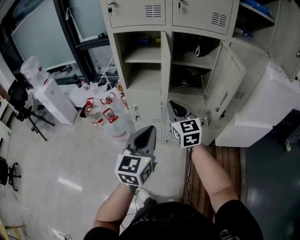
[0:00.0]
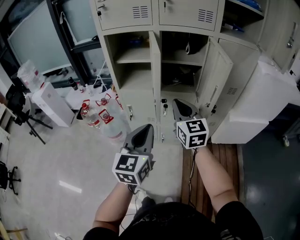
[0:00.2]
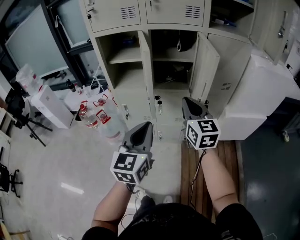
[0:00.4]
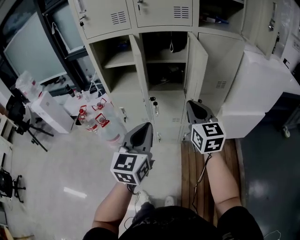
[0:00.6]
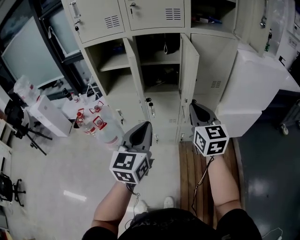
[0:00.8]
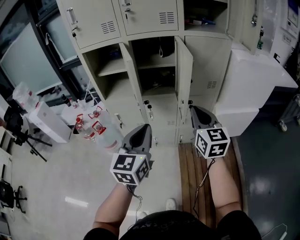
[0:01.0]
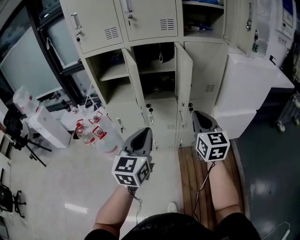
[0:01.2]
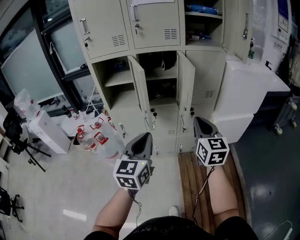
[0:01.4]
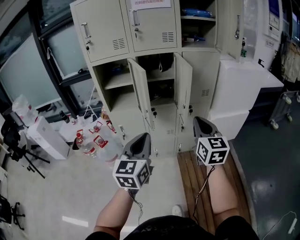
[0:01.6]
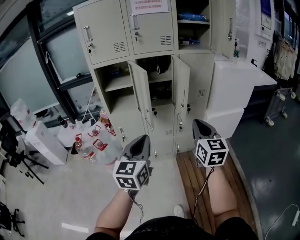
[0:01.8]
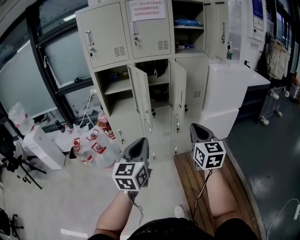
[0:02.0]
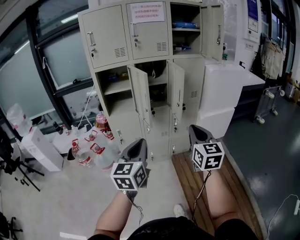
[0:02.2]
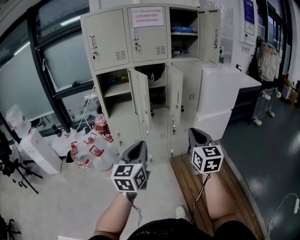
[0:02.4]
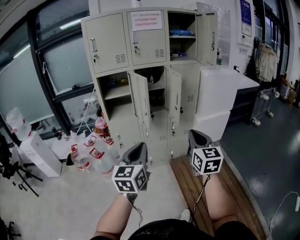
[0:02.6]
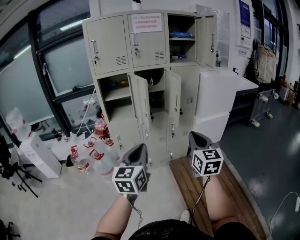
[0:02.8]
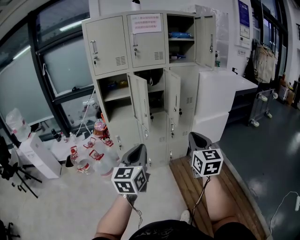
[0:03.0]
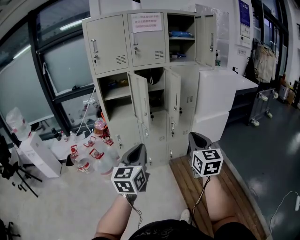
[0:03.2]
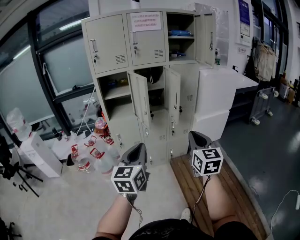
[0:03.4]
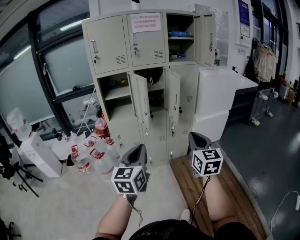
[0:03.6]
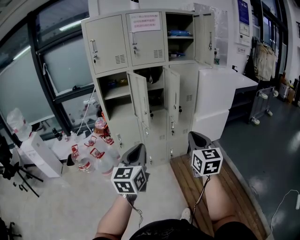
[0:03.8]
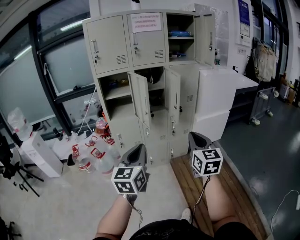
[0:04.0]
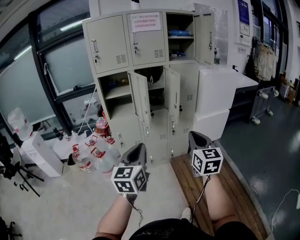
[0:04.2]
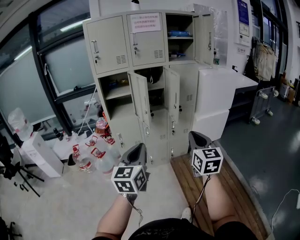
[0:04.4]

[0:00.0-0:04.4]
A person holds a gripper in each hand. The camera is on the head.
0.0 to 1.4 s: The right gripper is displaced to the right and backward by roughly 30 cm, and swivels approximately 20 degrees. Meanwhile the left gripper travels to the right, backward and upward by some 15 cm.
1.4 to 3.0 s: The right gripper heads backward, covering some 25 cm, while the left gripper travels backward and to the left by some 20 cm.
3.0 to 4.4 s: There are only small adjustments of the grippers.

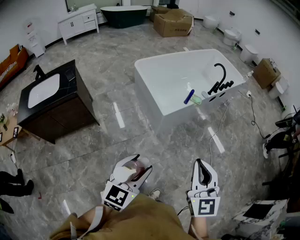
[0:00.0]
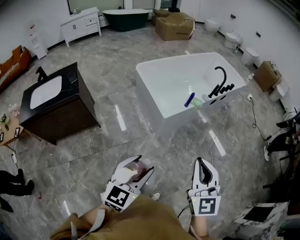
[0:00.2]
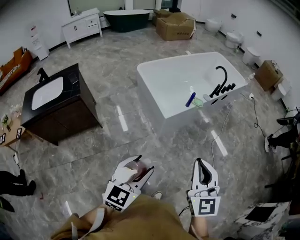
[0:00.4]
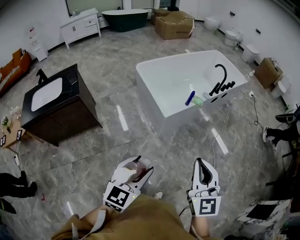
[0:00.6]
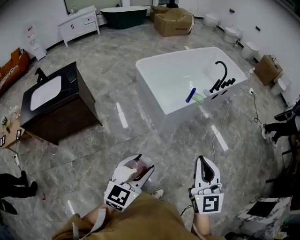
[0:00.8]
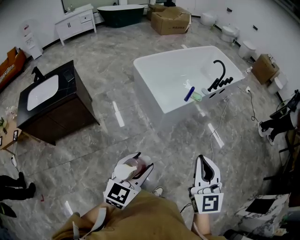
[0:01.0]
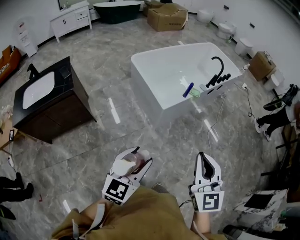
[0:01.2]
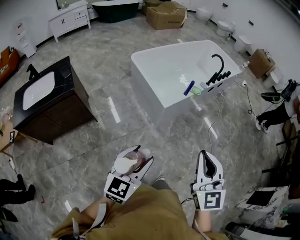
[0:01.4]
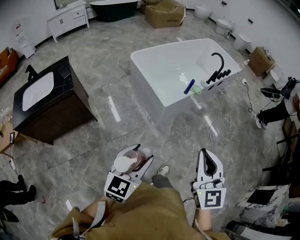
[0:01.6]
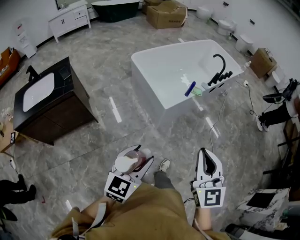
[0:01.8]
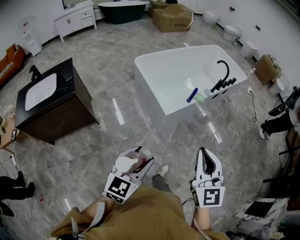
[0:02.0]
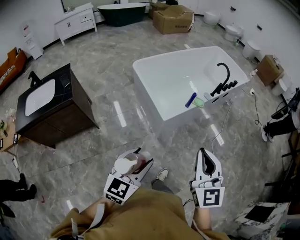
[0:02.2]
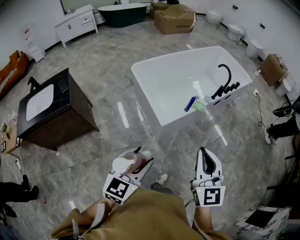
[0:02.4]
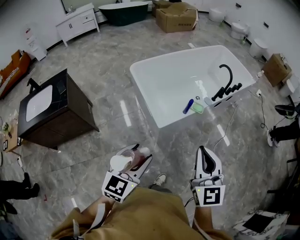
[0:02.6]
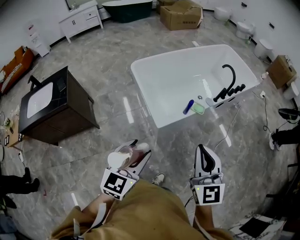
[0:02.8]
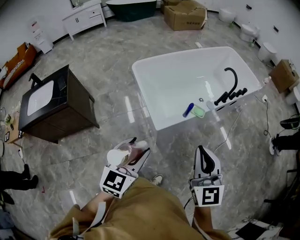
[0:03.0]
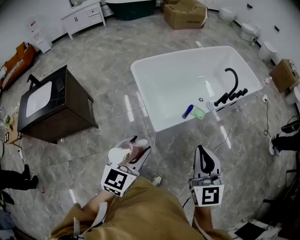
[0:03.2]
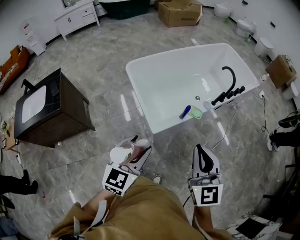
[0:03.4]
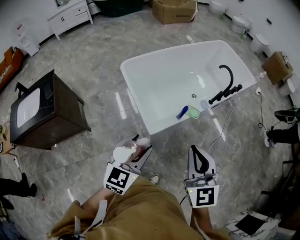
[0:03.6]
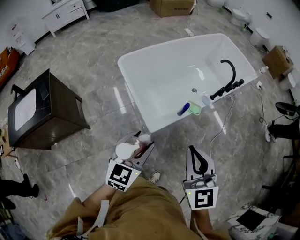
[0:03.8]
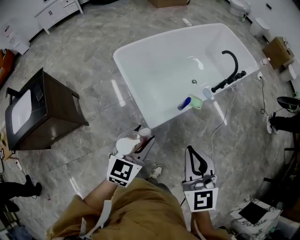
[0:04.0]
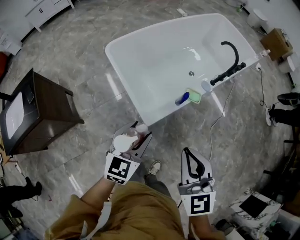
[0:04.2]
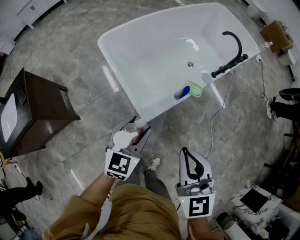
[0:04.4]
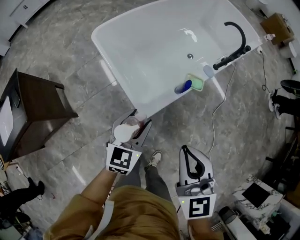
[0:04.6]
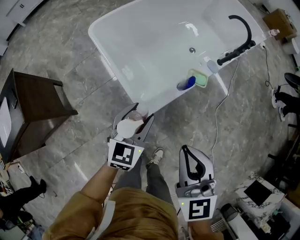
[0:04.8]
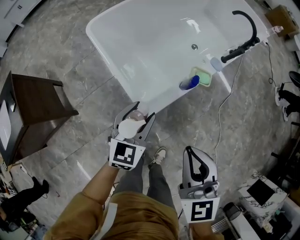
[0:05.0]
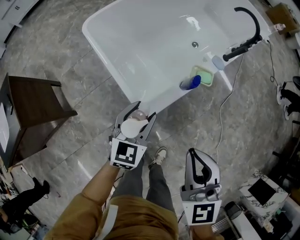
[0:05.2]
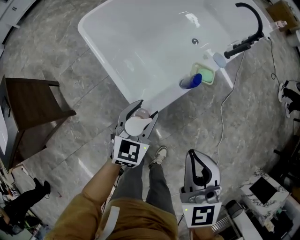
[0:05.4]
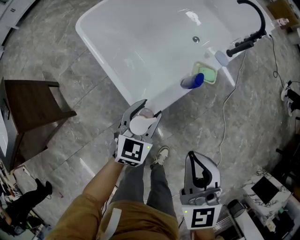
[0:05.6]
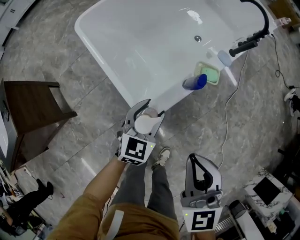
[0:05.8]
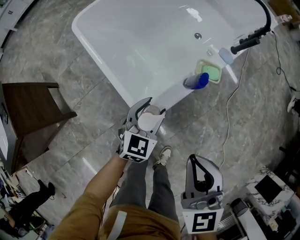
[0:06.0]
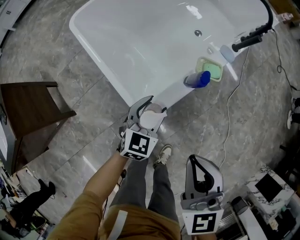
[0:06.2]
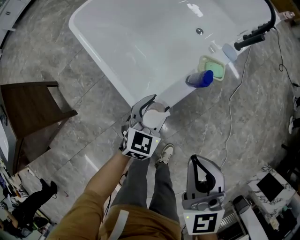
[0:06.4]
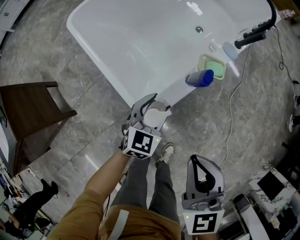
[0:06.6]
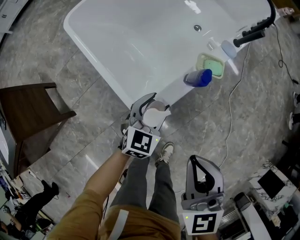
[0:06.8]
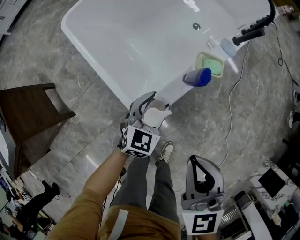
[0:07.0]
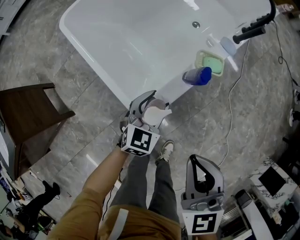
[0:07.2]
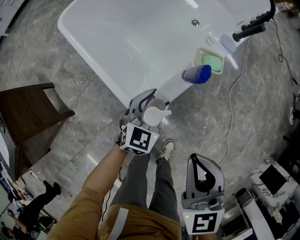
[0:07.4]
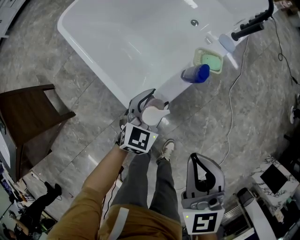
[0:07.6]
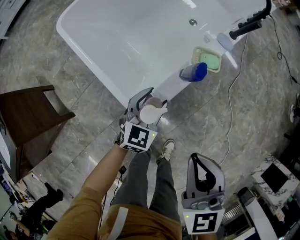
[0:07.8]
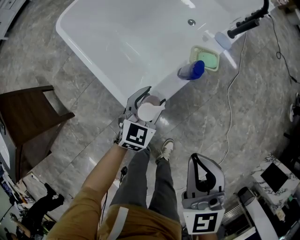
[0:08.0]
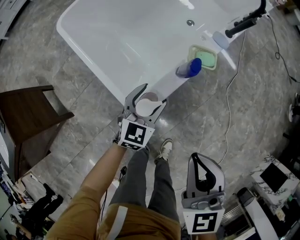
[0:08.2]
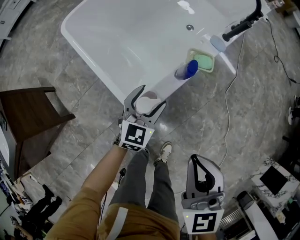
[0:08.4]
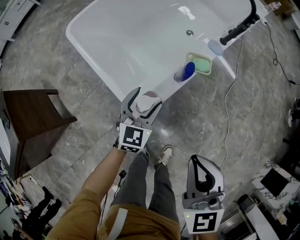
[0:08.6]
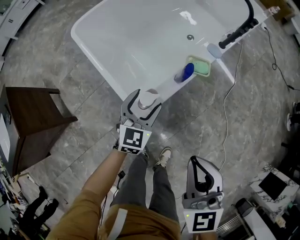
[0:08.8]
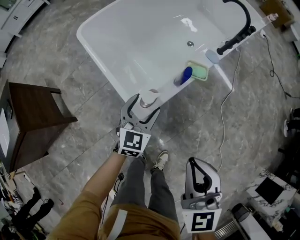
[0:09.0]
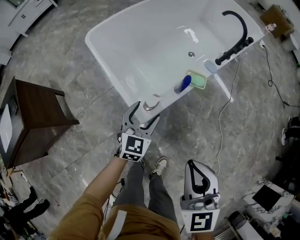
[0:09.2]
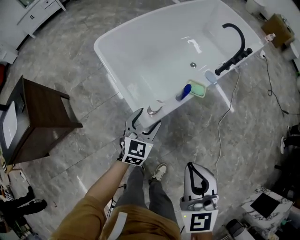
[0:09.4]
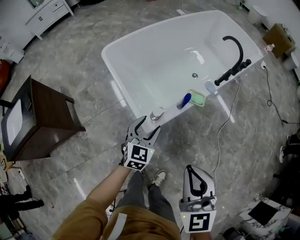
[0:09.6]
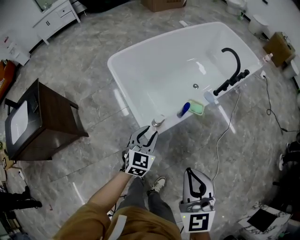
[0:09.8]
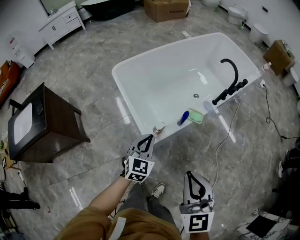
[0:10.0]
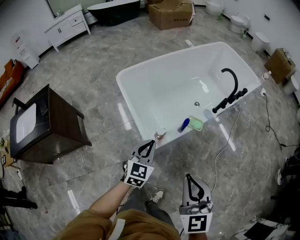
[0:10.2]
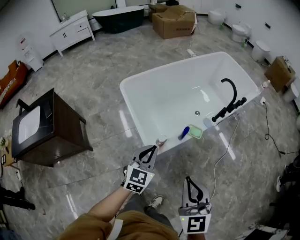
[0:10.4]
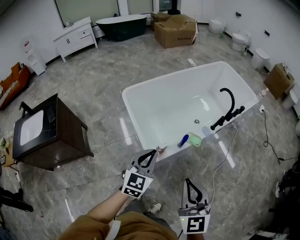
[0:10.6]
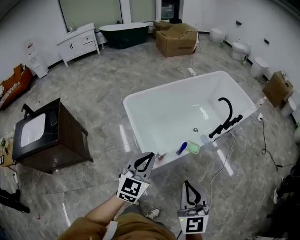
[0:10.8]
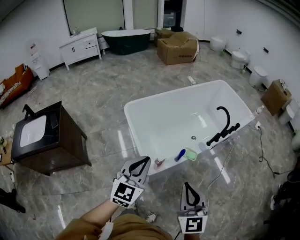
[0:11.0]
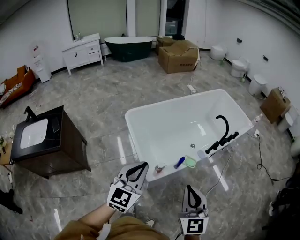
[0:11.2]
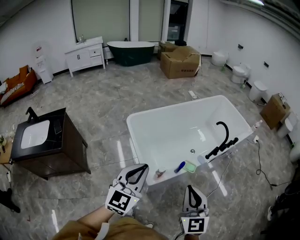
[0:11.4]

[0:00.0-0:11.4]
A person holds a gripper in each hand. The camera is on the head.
0.0 to 1.4 s: The grippers stay close to where they were, moving slightly.
1.4 to 2.8 s: The left gripper moves forward and to the right, about 25 cm, while the right gripper shifts roughly 25 cm forward.
2.8 to 4.2 s: The right gripper moves forward, downward and to the left, roughly 15 cm. Meanwhile the left gripper shifts about 25 cm forward and downward.
4.2 to 5.6 s: The two grippers go some 20 cm downward and forward.
5.6 to 7.2 s: The left gripper travels downward by about 10 cm. Meanwhile the right gripper is displaced downward by approximately 5 cm.
7.2 to 8.6 s: The right gripper moves some 5 cm.
8.6 to 10.0 s: Both grippers move upward and backward, approximately 20 cm. The left gripper closes.
10.0 to 11.4 s: The right gripper moves upward, approximately 10 cm. The left gripper travels upward by some 30 cm, and turns by approximately 20 degrees.

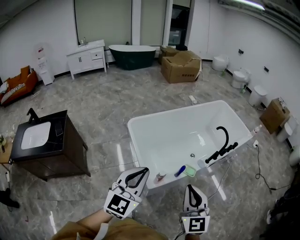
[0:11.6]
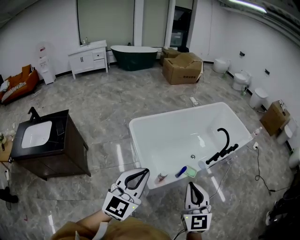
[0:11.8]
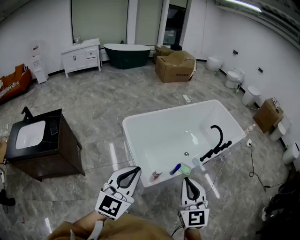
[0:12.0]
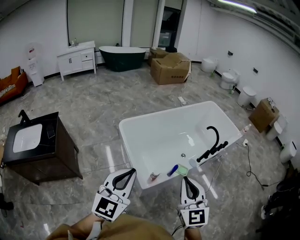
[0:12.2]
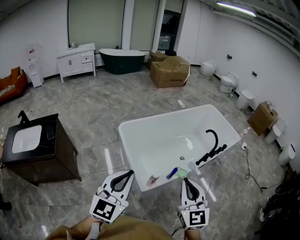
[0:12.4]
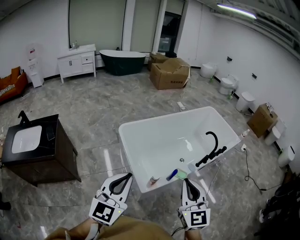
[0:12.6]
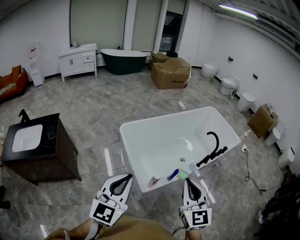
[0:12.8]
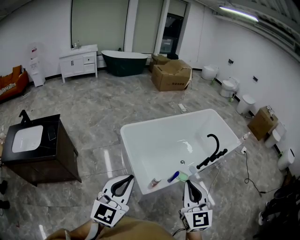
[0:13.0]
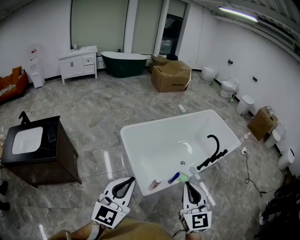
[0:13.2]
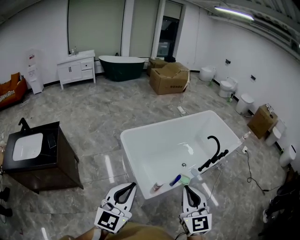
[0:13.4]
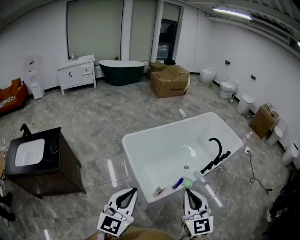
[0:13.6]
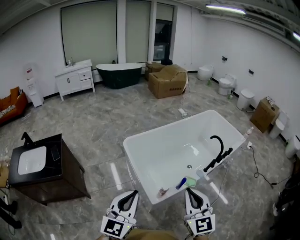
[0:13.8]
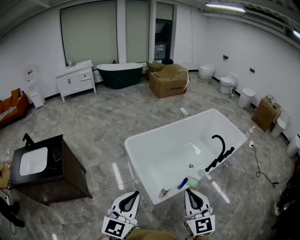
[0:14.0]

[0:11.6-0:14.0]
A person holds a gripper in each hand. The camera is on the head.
11.6 to 12.8 s: The left gripper heads to the left, covering some 5 cm. Meanwhile the right gripper moves about 5 cm.
12.8 to 14.0 s: There are only small adjustments of the grippers.

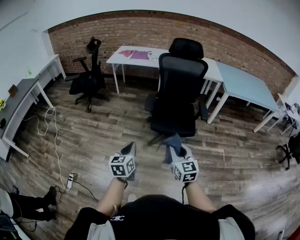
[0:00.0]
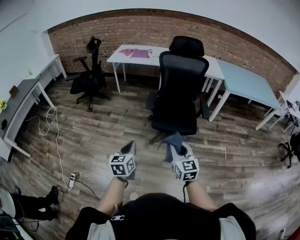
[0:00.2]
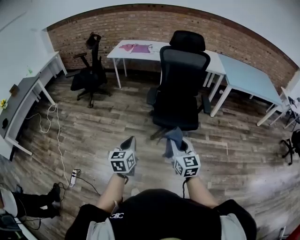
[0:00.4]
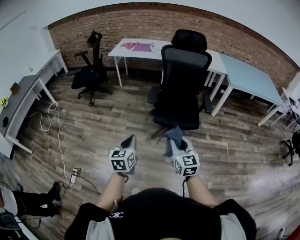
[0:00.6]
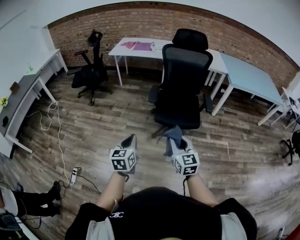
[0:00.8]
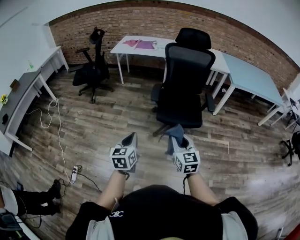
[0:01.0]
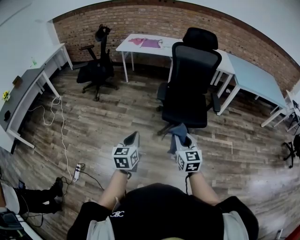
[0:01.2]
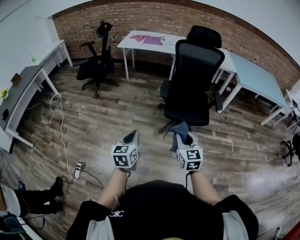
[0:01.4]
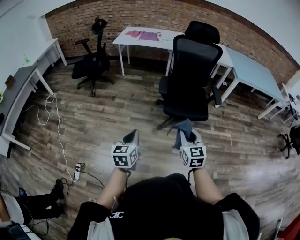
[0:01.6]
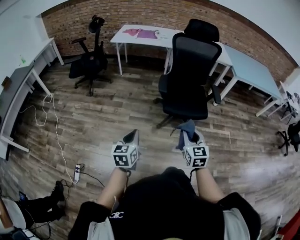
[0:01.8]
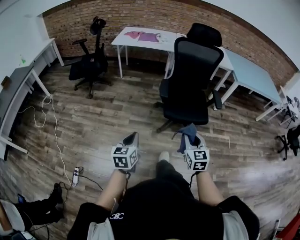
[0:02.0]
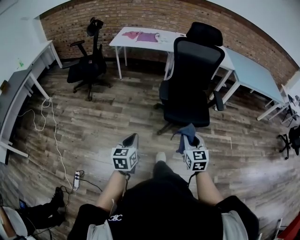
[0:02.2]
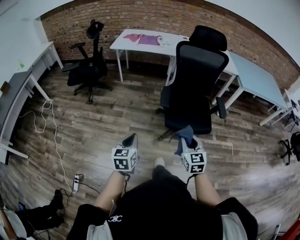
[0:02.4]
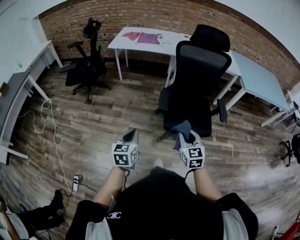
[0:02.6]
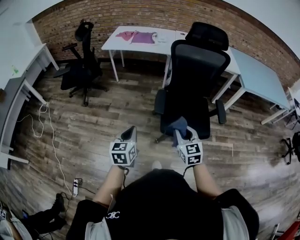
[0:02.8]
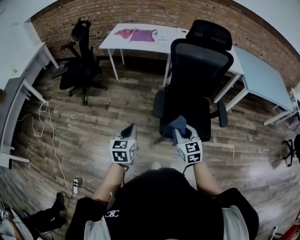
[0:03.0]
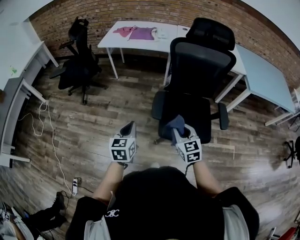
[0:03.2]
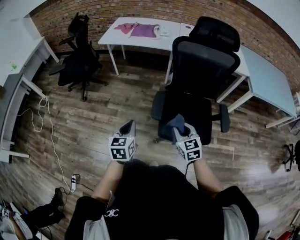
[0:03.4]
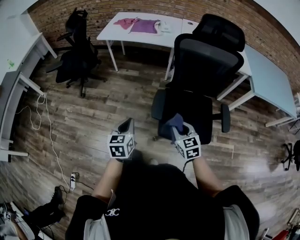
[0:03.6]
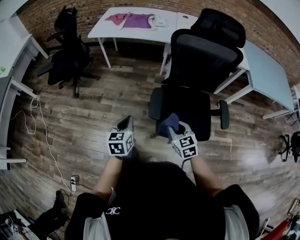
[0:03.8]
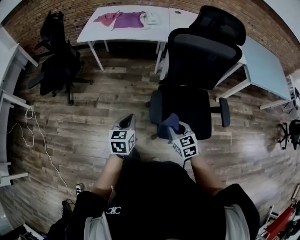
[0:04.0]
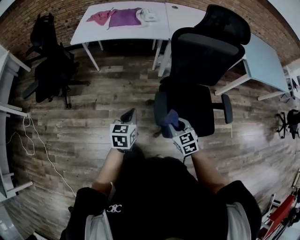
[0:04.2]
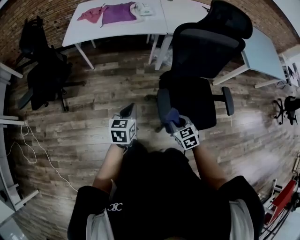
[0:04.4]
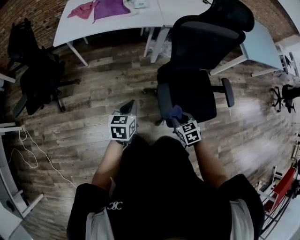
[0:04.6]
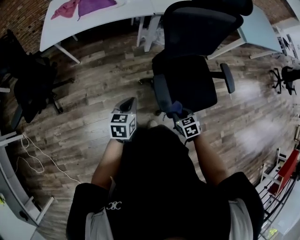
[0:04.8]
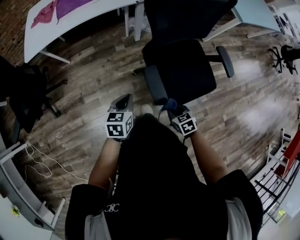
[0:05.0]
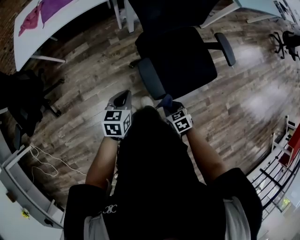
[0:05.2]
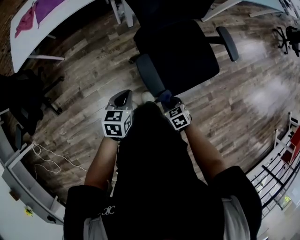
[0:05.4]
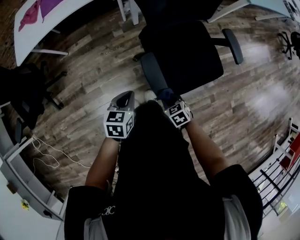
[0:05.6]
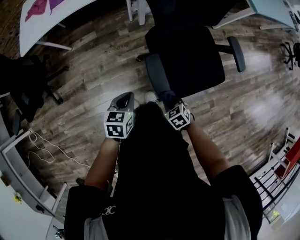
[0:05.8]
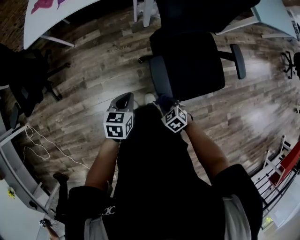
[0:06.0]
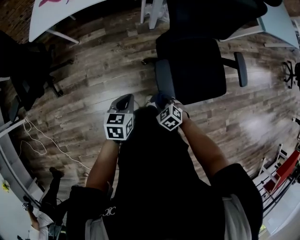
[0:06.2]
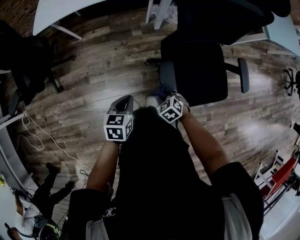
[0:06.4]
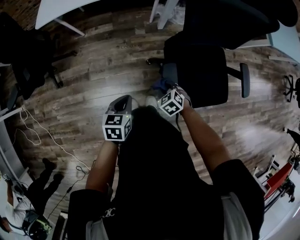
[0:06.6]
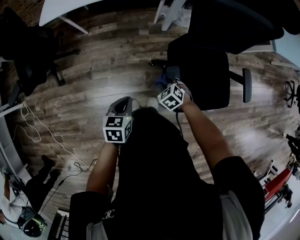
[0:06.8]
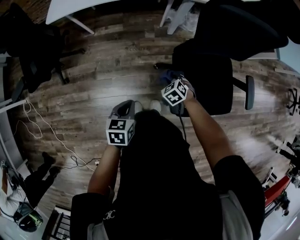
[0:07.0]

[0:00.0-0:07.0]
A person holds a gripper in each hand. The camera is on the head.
0.0 to 1.4 s: Both grippers travel together to the left, about 10 cm.
1.4 to 2.8 s: Both grippers travel together forward, about 25 cm.
2.8 to 4.2 s: The left gripper heads forward, covering approximately 30 cm. The right gripper travels forward and downward by approximately 25 cm.
4.2 to 5.6 s: The right gripper travels downward by about 20 cm, and turns by roughly 30 degrees. Meanwhile the left gripper is displaced downward by roughly 10 cm, and turns by about 30 degrees.
5.6 to 7.0 s: The right gripper shifts some 20 cm forward, and changes its angle by approximately 30 degrees; the left gripper shifts about 10 cm to the left, and swivels about 20 degrees.
